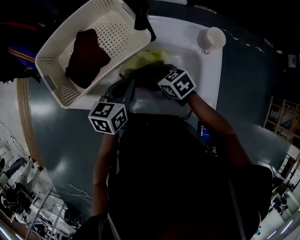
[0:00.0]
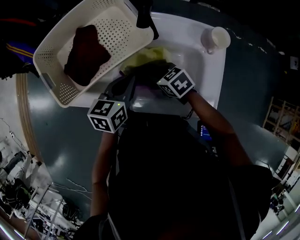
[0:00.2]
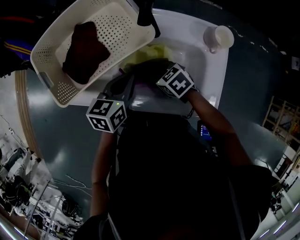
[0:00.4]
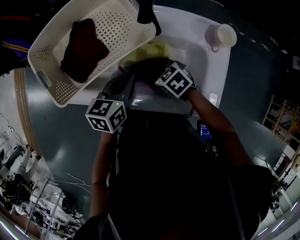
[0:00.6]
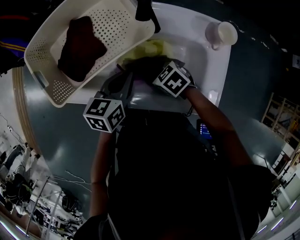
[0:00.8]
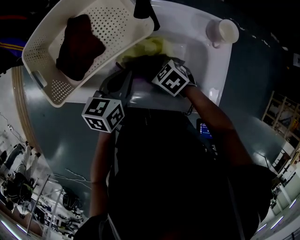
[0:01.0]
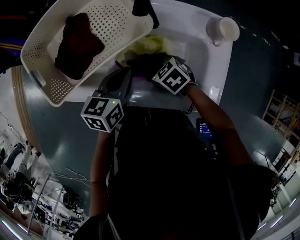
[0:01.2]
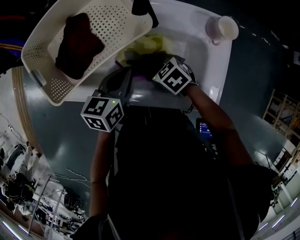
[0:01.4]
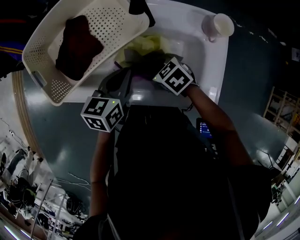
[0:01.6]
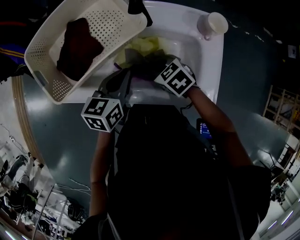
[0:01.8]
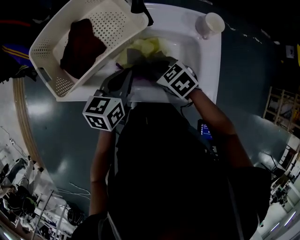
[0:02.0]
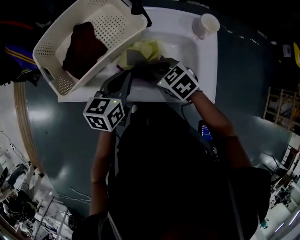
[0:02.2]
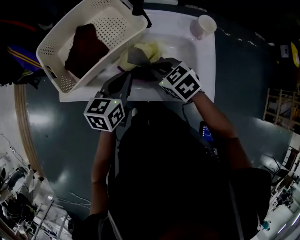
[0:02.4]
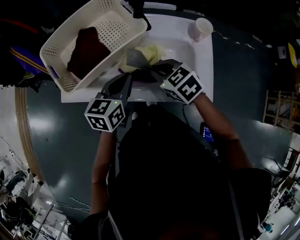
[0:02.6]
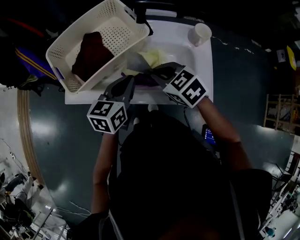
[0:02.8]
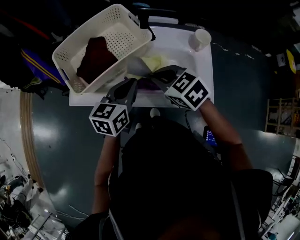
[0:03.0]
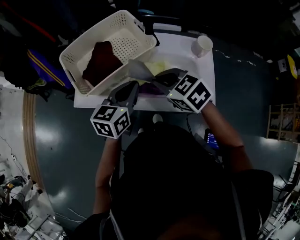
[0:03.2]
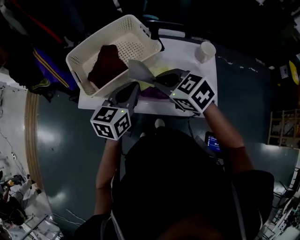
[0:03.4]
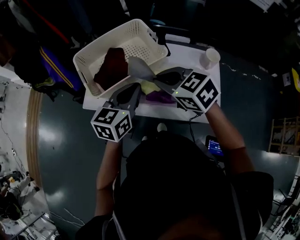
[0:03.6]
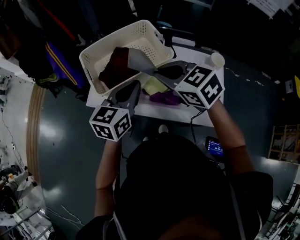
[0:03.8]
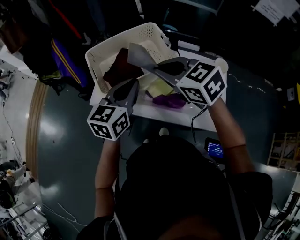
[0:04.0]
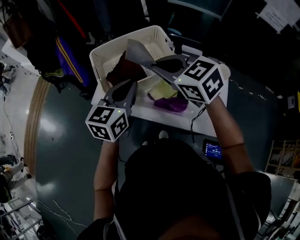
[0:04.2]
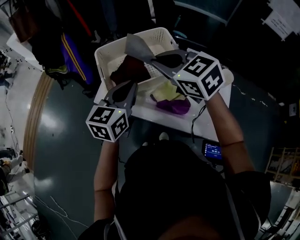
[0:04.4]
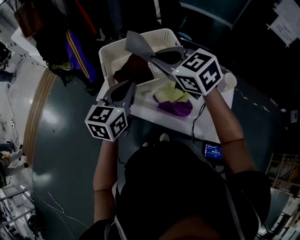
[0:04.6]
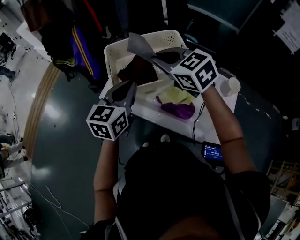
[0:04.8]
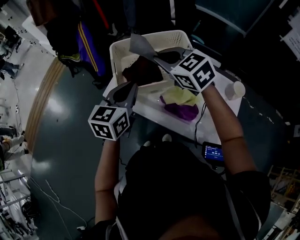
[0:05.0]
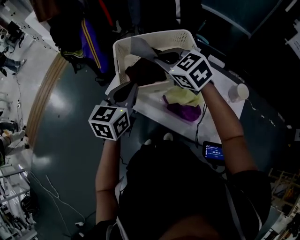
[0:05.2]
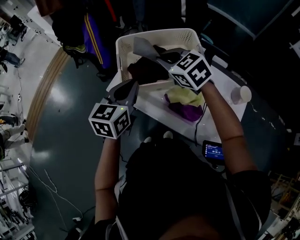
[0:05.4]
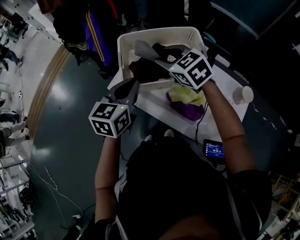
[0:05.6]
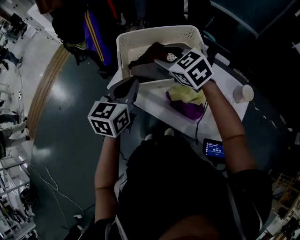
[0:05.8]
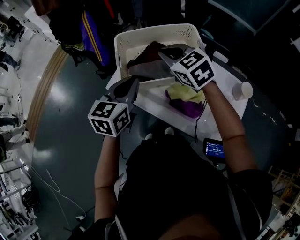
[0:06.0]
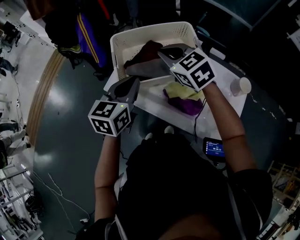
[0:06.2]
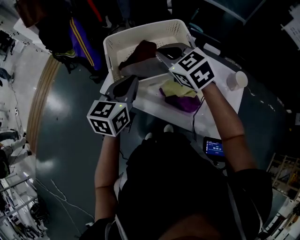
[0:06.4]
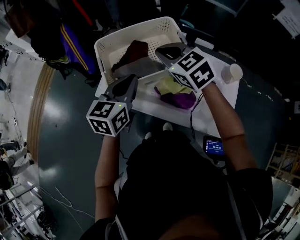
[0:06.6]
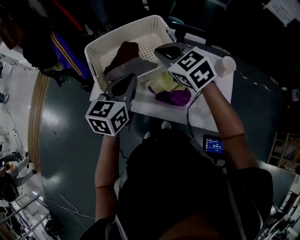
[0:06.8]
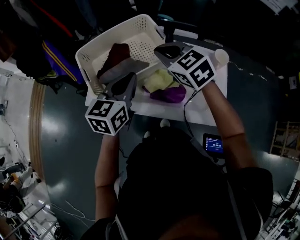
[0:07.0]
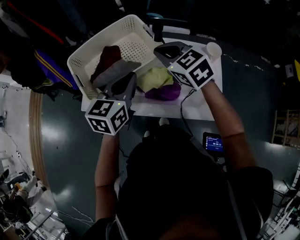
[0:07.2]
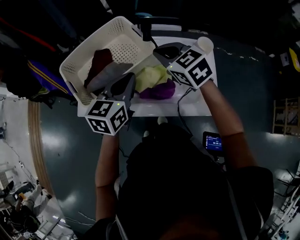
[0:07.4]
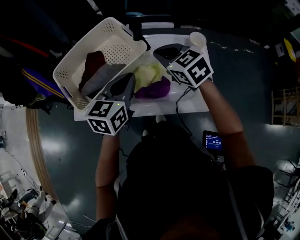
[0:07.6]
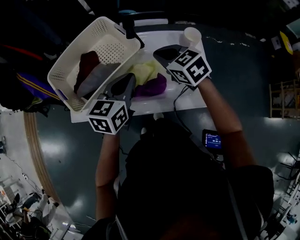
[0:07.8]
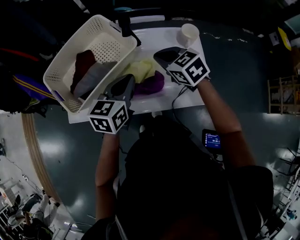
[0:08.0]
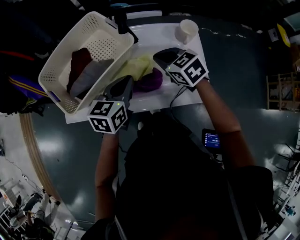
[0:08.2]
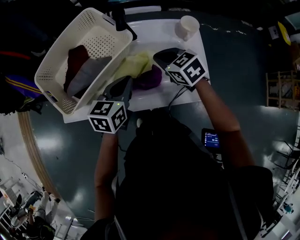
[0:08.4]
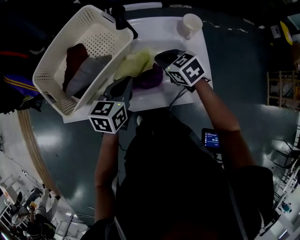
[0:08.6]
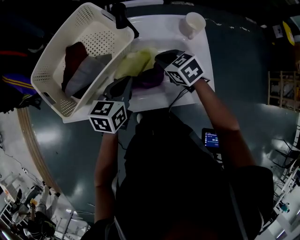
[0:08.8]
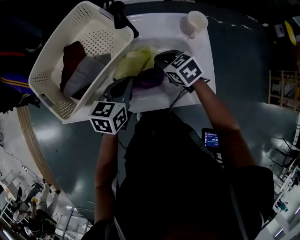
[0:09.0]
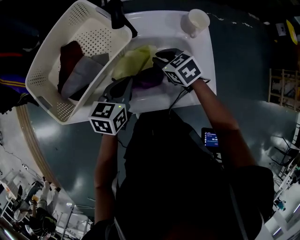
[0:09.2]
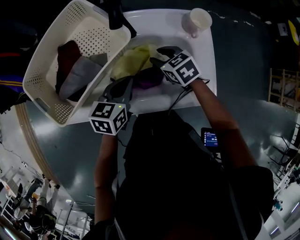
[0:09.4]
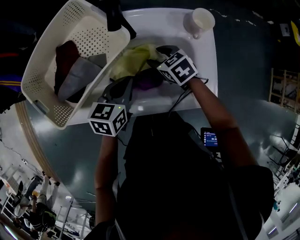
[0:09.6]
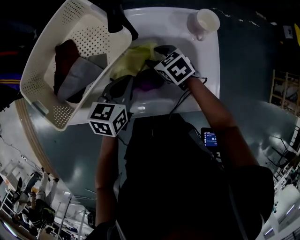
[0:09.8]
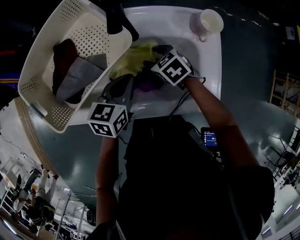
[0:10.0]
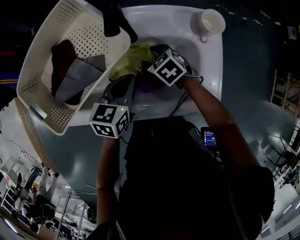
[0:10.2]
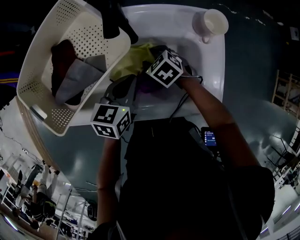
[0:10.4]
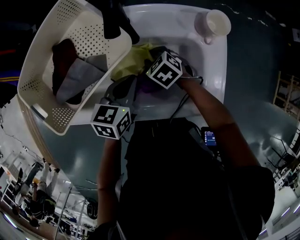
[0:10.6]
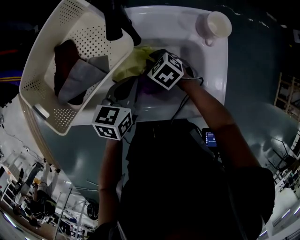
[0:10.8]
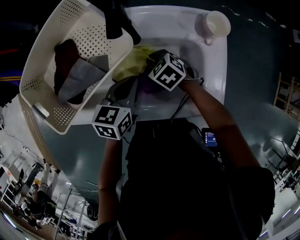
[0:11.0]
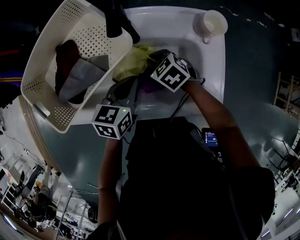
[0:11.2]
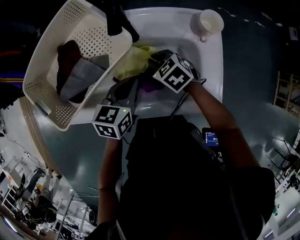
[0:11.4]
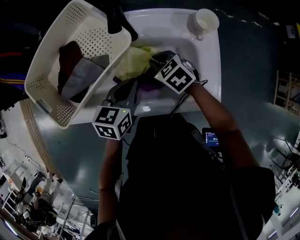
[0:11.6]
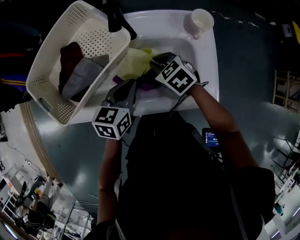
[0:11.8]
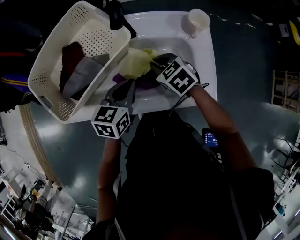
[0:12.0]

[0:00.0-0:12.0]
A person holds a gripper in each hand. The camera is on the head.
0:00.0 to 0:01.6: The right gripper closes up.
0:01.6 to 0:03.0: The left gripper shifts approximately 10 cm upward and backward, while the right gripper is displaced upward by approximately 20 cm.
0:03.0 to 0:04.4: The right gripper is displaced upward, to the left and forward by approximately 20 cm, and turns by approximately 20 degrees. Meanwhile the left gripper shifts approximately 15 cm to the left and upward.
0:04.4 to 0:06.0: The right gripper goes some 10 cm forward and downward, and opens and closes again. Meanwhile the left gripper heads to the left, covering approximately 5 cm.
0:06.0 to 0:07.6: The right gripper changes place by roughly 25 cm, and swivels about 30 degrees. Meanwhile the left gripper ends up about 20 cm from where it was, and swivels approximately 30 degrees.
0:07.6 to 0:09.0: The grippers both shift downward by approximately 15 cm. The right gripper rotates some 20 degrees.
0:09.0 to 0:10.4: The right gripper travels downward by some 10 cm, and opens, while the left gripper shifts by roughly 5 cm.
0:10.4 to 0:12.0: The right gripper heads upward and backward, covering approximately 10 cm, and closes up; the left gripper changes place by approximately 5 cm.

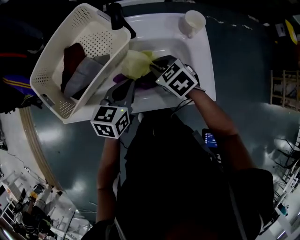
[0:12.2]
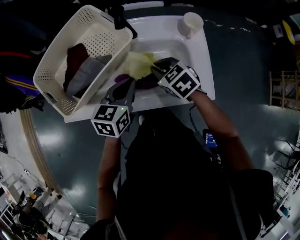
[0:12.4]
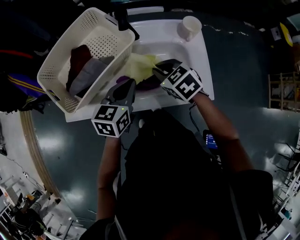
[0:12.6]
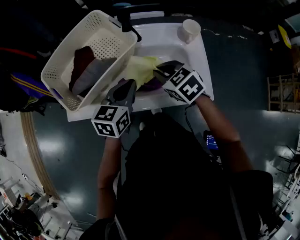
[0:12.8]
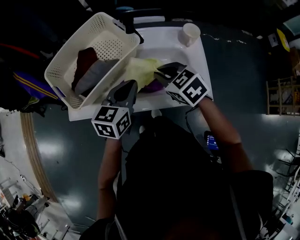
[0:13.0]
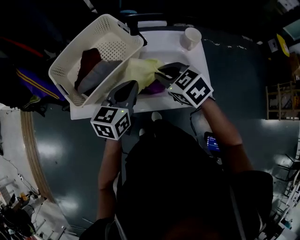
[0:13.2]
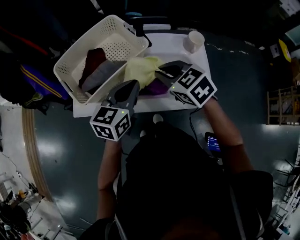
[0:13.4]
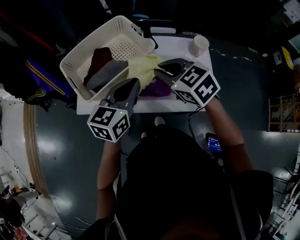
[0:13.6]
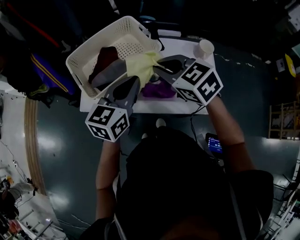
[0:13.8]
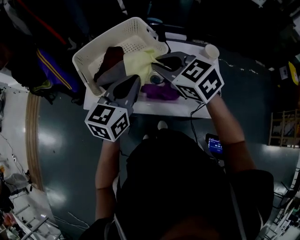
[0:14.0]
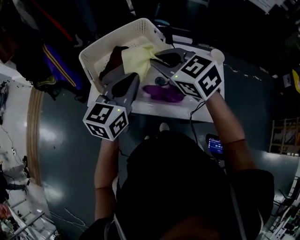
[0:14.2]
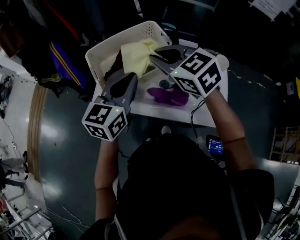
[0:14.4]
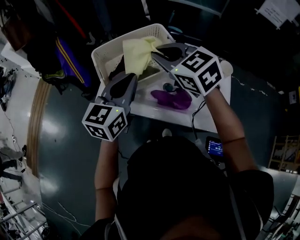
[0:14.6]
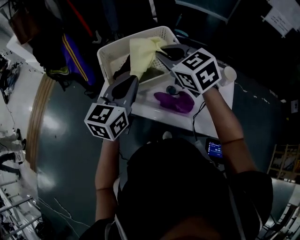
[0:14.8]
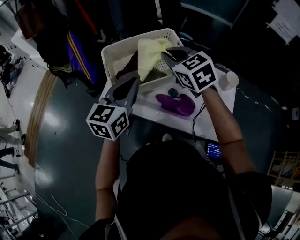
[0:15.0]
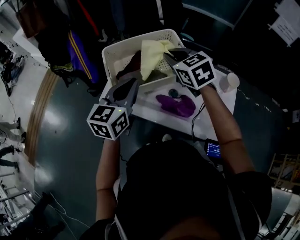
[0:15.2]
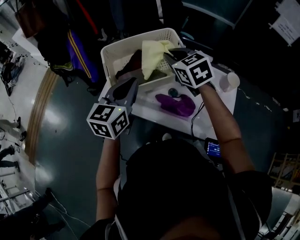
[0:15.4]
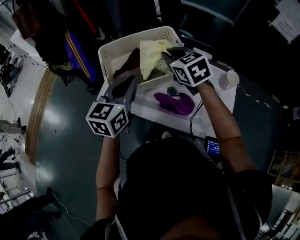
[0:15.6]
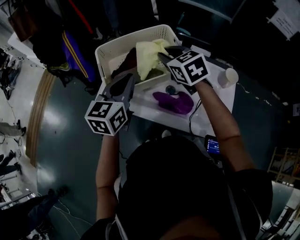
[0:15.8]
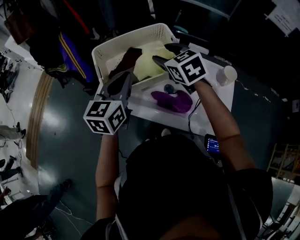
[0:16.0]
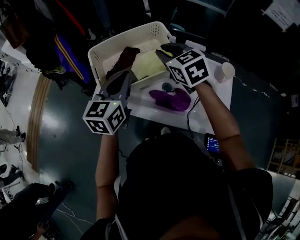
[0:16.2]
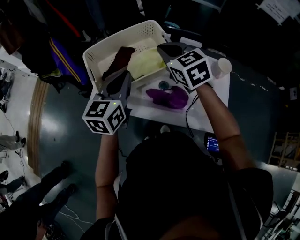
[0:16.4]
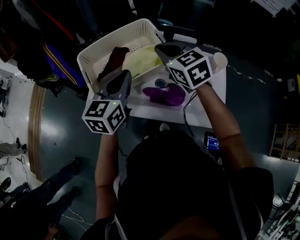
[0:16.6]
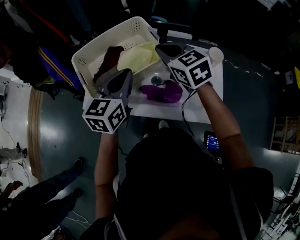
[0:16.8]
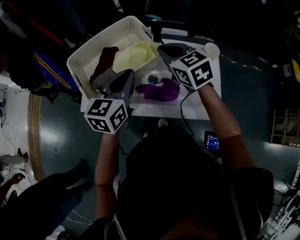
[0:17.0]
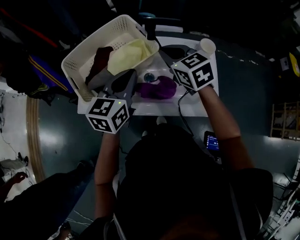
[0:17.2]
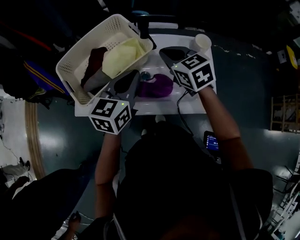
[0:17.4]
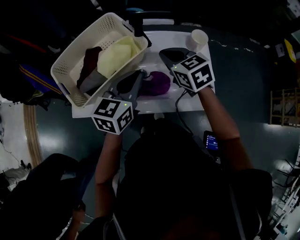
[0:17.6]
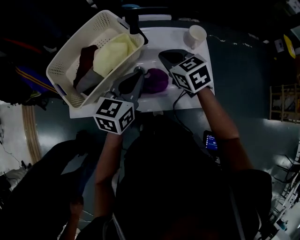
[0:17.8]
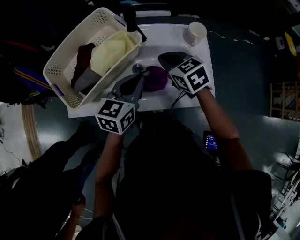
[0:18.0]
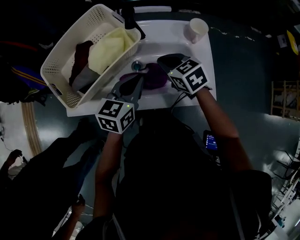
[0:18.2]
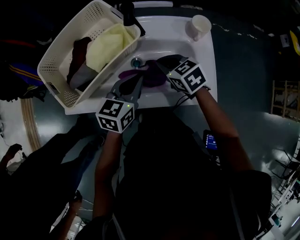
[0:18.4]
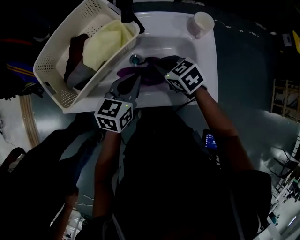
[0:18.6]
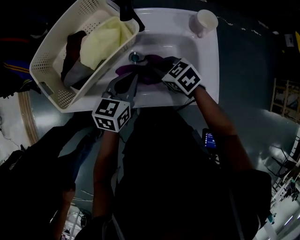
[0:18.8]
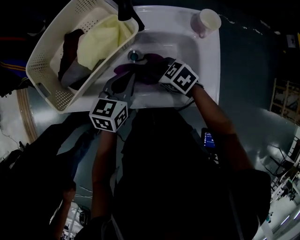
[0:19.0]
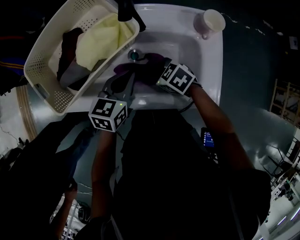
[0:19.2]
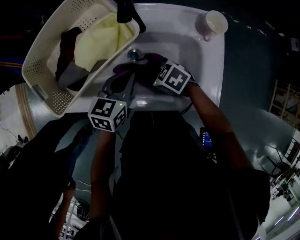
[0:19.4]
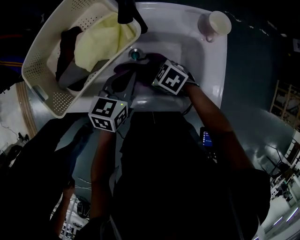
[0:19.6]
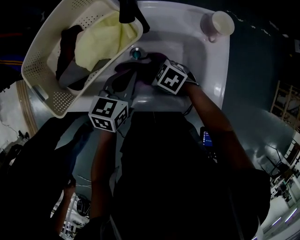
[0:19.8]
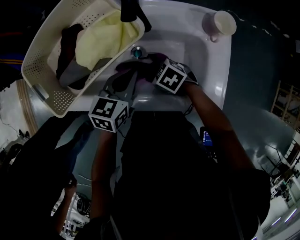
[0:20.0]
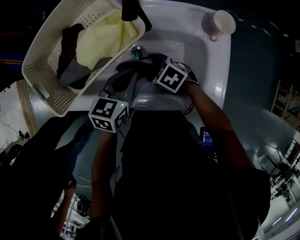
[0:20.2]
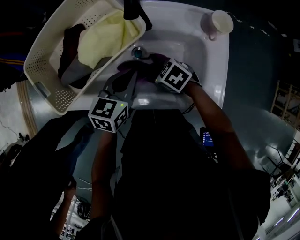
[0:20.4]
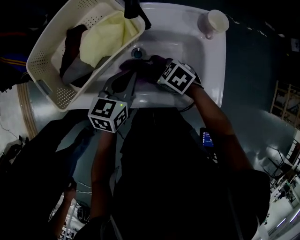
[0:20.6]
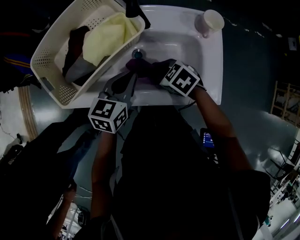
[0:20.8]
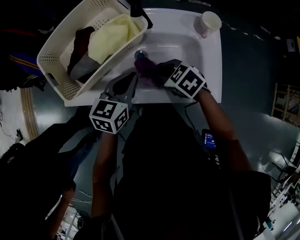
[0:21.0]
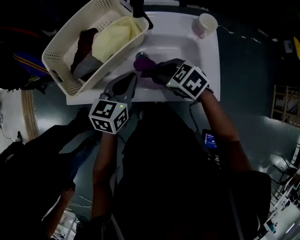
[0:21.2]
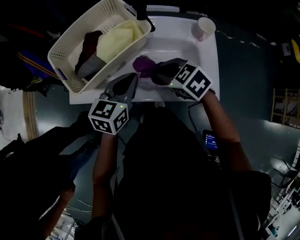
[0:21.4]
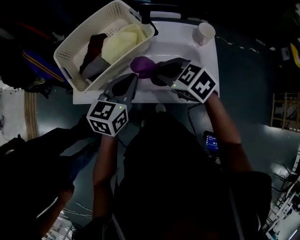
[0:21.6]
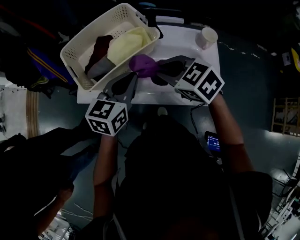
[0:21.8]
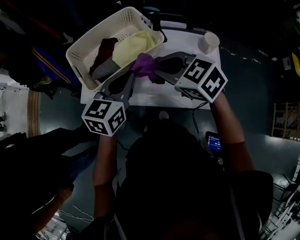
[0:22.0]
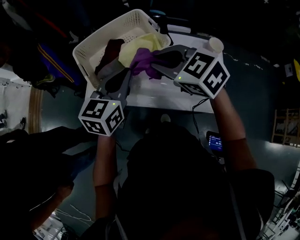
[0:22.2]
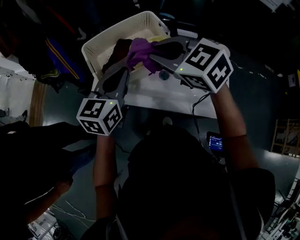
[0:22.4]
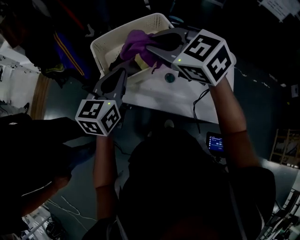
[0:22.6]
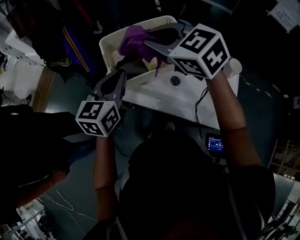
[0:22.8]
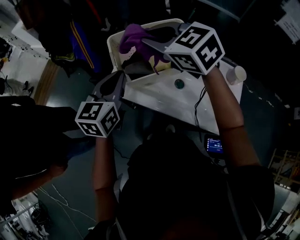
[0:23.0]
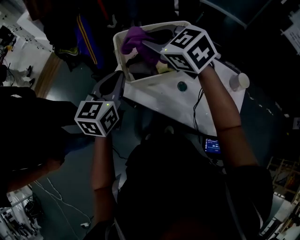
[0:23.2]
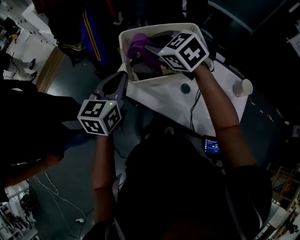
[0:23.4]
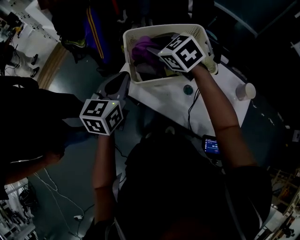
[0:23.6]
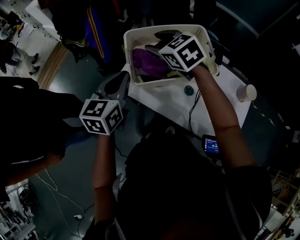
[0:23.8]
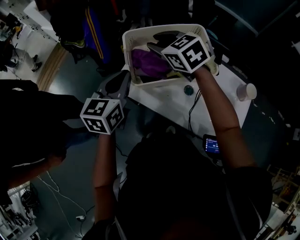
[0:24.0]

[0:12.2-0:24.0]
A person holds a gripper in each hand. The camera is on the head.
0:12.2 to 0:13.6: The two grippers go about 15 cm upward.
0:13.6 to 0:15.2: The left gripper goes approximately 10 cm to the left, and turns by roughly 20 degrees. Meanwhile the right gripper moves forward and to the left, approximately 15 cm.
0:15.2 to 0:16.6: The right gripper opens and closes again, while the left gripper moves about 5 cm.
0:16.6 to 0:18.2: The left gripper goes about 20 cm to the right and downward, and turns by some 20 degrees, while the right gripper goes some 20 cm downward and to the right, and rotates about 20 degrees.
0:18.2 to 0:19.6: The left gripper moves downward, some 10 cm, while the right gripper shifts some 15 cm downward, rotates approximately 30 degrees, and opens its fingers.
0:19.6 to 0:21.0: The left gripper moves upward, roughly 5 cm. The right gripper moves upward, some 10 cm, and closes its fingers.
0:21.0 to 0:22.6: The left gripper goes about 25 cm upward and to the left, and swivels roughly 30 degrees. The right gripper goes approximately 30 cm upward, and changes its angle by approximately 40 degrees.
0:22.6 to 0:24.0: The right gripper moves forward, downward and to the left, approximately 15 cm, and opens, then closes again. The left gripper goes some 5 cm to the left.
